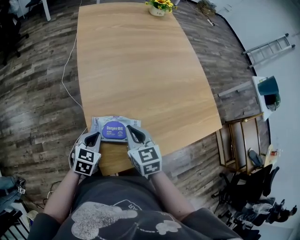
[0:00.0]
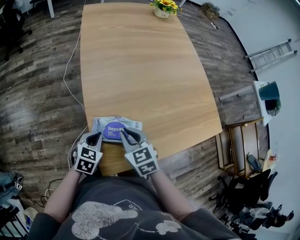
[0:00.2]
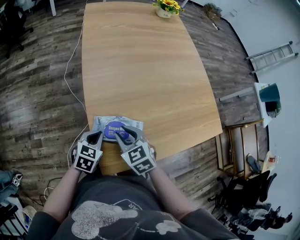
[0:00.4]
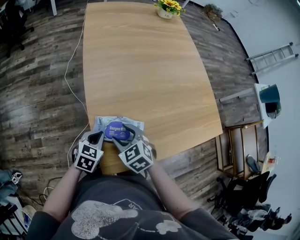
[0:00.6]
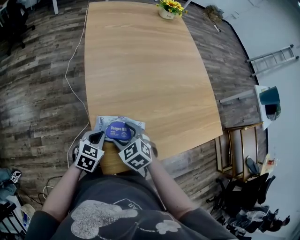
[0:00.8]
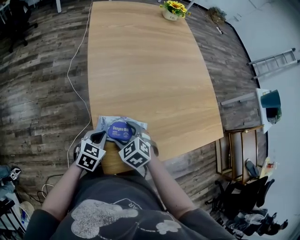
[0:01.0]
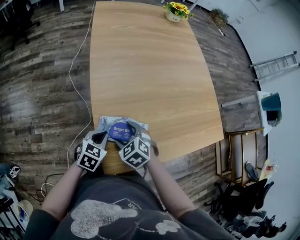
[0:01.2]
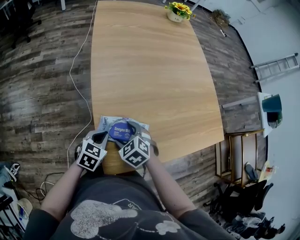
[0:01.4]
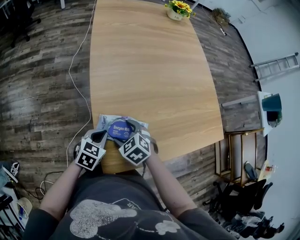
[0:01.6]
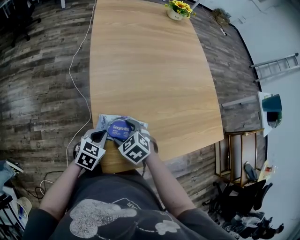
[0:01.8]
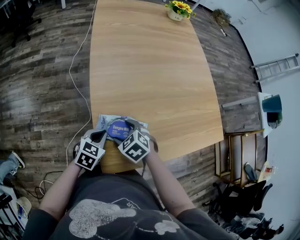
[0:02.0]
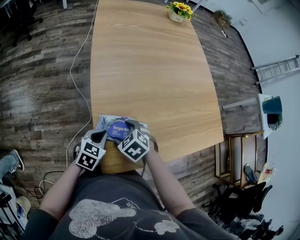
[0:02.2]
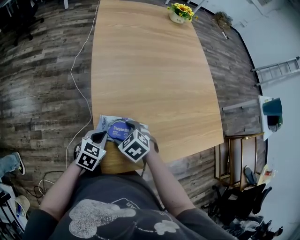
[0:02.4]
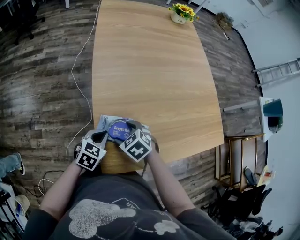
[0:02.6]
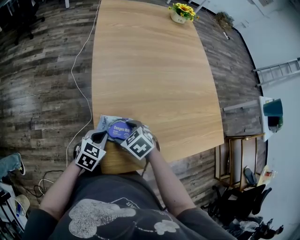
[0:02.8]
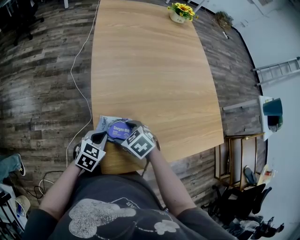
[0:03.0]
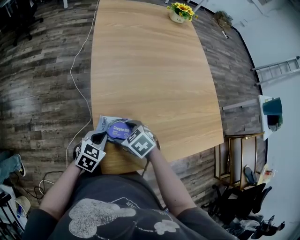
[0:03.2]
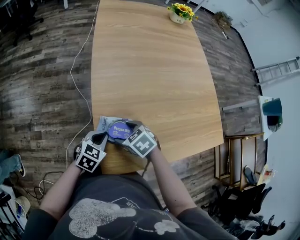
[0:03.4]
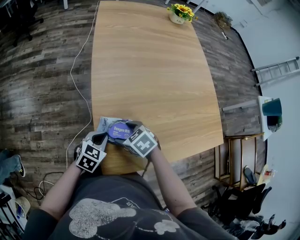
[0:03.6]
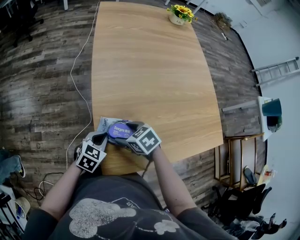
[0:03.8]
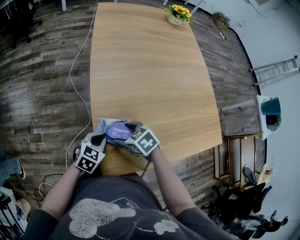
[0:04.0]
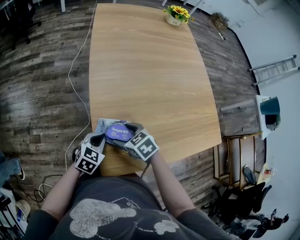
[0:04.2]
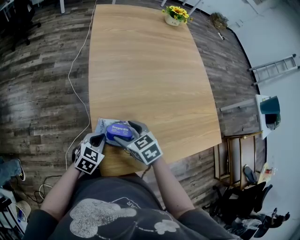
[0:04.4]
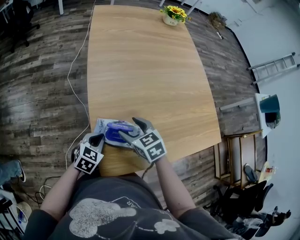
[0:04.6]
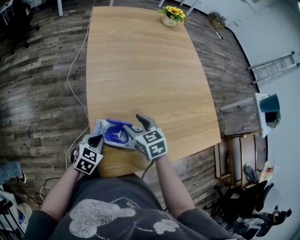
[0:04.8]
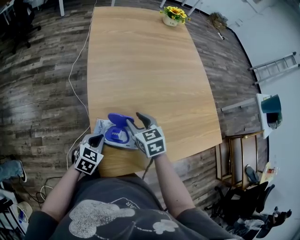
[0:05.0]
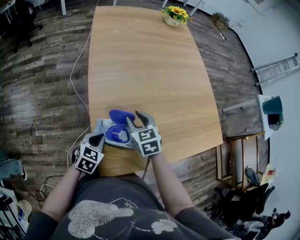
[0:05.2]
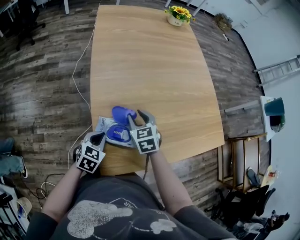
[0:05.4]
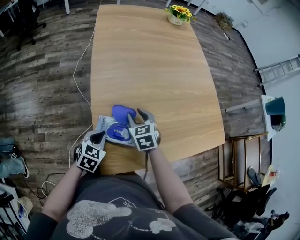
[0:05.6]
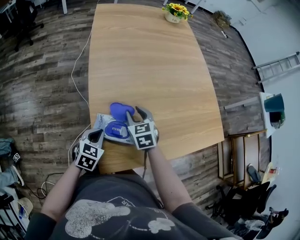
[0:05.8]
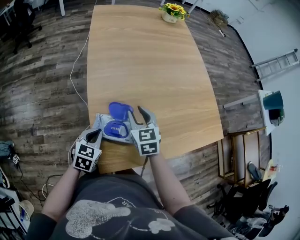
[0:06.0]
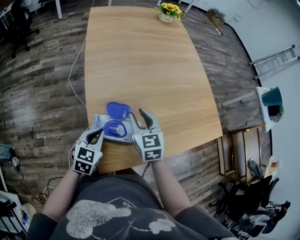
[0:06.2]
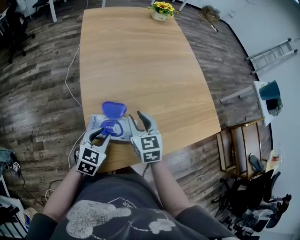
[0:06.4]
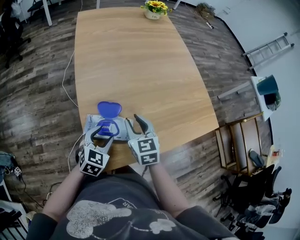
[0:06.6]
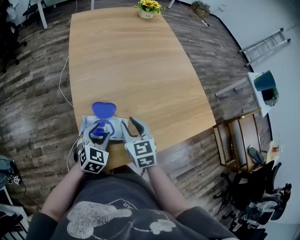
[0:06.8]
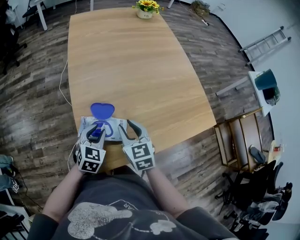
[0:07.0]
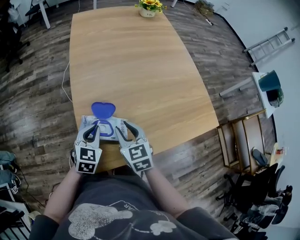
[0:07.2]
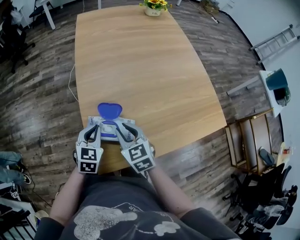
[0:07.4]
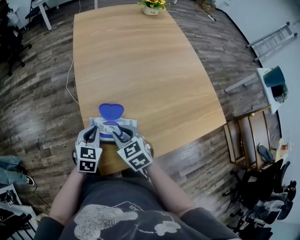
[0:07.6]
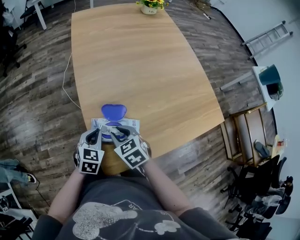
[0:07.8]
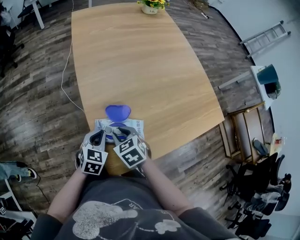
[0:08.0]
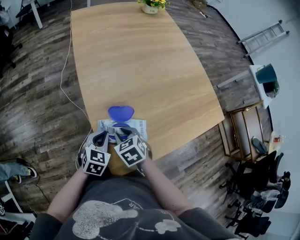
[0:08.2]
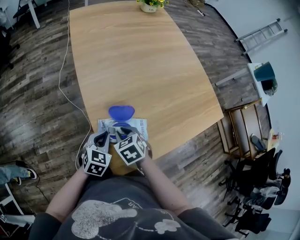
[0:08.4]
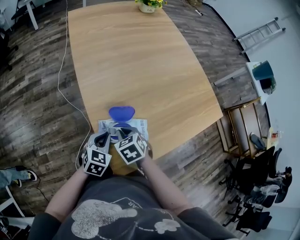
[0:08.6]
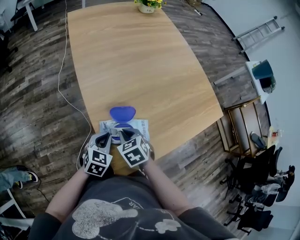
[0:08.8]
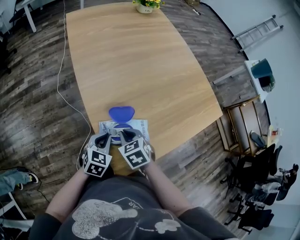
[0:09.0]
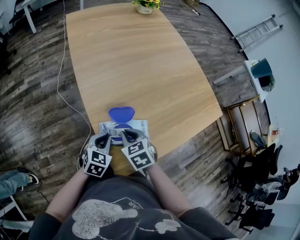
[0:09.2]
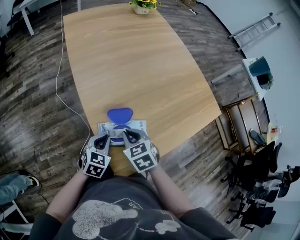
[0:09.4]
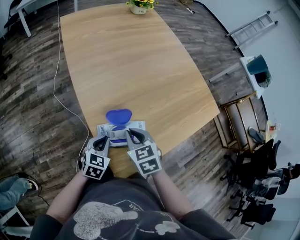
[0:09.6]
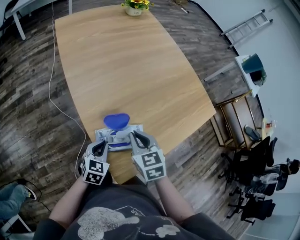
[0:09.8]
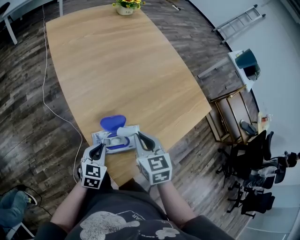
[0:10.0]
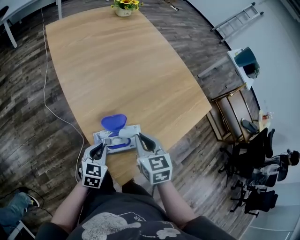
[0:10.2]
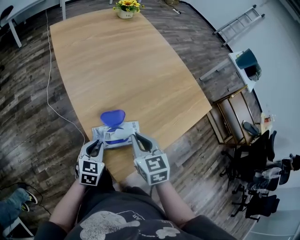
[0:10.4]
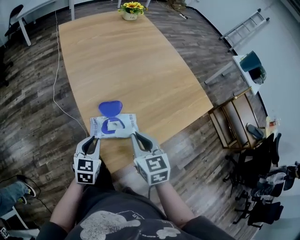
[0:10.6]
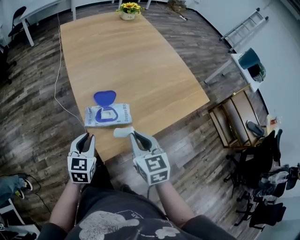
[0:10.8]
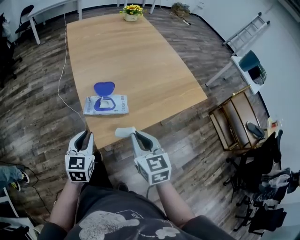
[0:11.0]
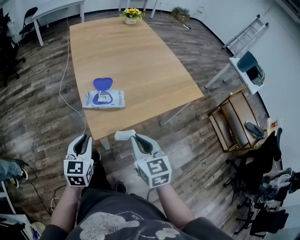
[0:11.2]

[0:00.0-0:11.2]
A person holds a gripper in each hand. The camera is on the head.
0:00.0 to 0:01.6: The right gripper goes roughly 10 cm downward and to the left, changes its angle by some 40 degrees, and opens up.
0:01.6 to 0:03.2: There are only small adjustments of the grippers.
0:03.2 to 0:04.8: The right gripper is displaced to the right, upward and forward by approximately 10 cm, and changes its angle by roughly 30 degrees.
0:04.8 to 0:06.4: The left gripper shifts some 5 cm upward, and opens up, while the right gripper changes place by roughly 5 cm, swivels some 20 degrees, and closes.
0:06.4 to 0:08.0: The right gripper moves to the left and downward, some 15 cm, and changes its angle by some 30 degrees. Meanwhile the left gripper ends up about 5 cm from where it was, and closes.
0:08.0 to 0:09.6: The right gripper moves upward, about 5 cm.
0:09.6 to 0:11.2: The right gripper is displaced backward and to the right by about 25 cm, and rotates some 20 degrees; the left gripper travels backward and upward by approximately 20 cm, and changes its angle by about 30 degrees.

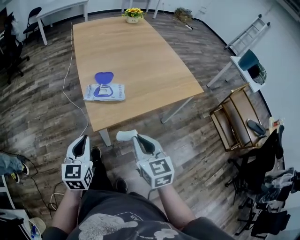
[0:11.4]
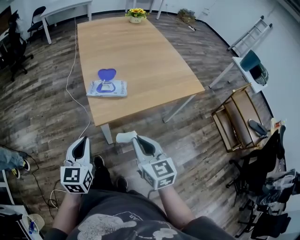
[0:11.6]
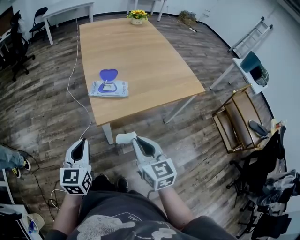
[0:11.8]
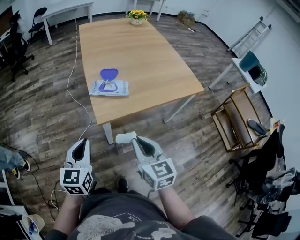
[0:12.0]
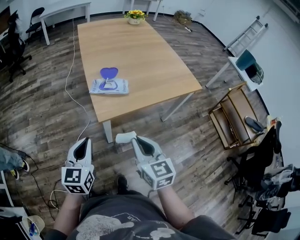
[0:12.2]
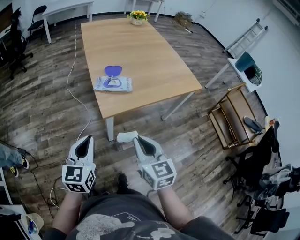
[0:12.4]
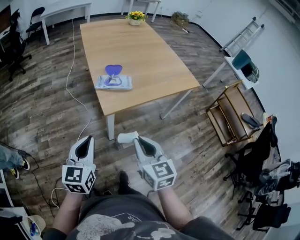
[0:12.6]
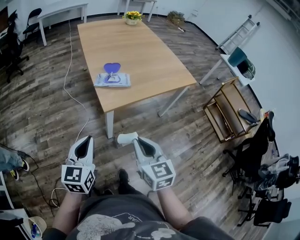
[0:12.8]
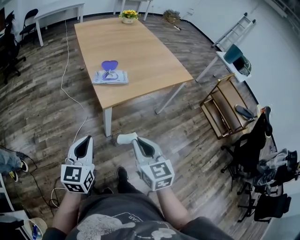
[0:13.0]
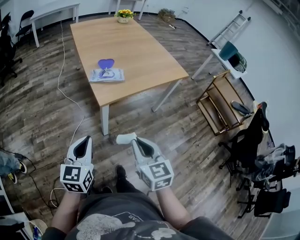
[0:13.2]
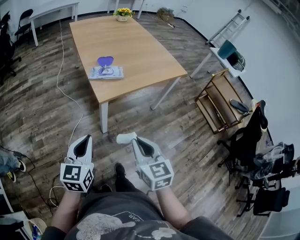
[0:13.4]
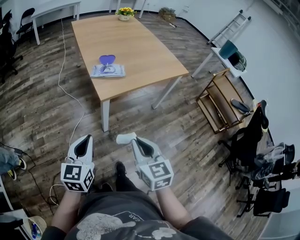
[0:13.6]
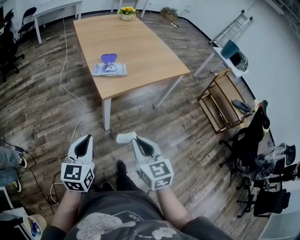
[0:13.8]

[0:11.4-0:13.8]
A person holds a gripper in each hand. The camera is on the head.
0:11.4 to 0:12.6: The right gripper moves backward and to the left, some 10 cm. The left gripper heads backward, covering roughly 10 cm.
0:12.6 to 0:13.8: The grippers both shift backward by some 10 cm.

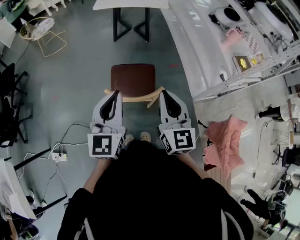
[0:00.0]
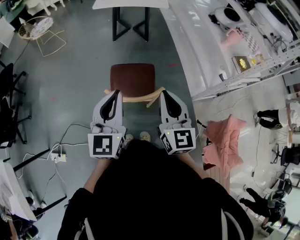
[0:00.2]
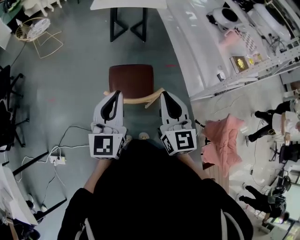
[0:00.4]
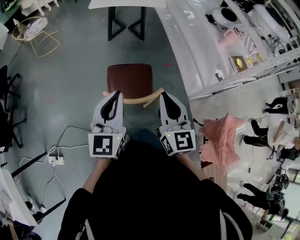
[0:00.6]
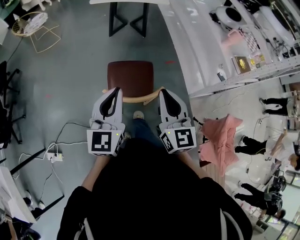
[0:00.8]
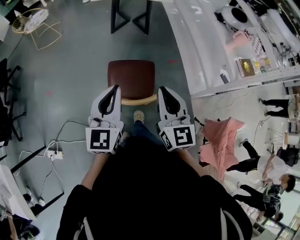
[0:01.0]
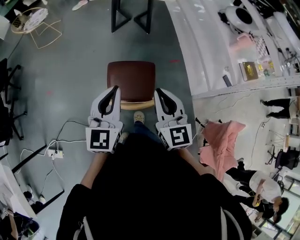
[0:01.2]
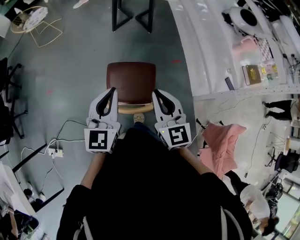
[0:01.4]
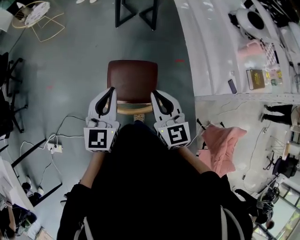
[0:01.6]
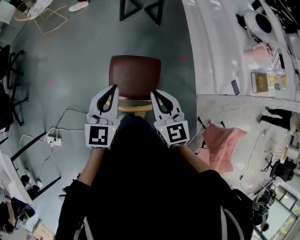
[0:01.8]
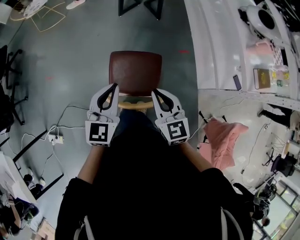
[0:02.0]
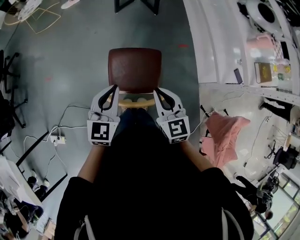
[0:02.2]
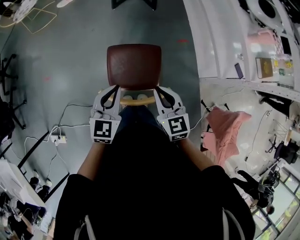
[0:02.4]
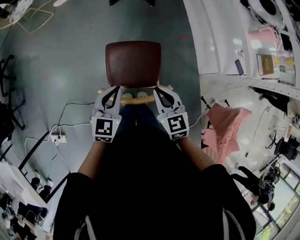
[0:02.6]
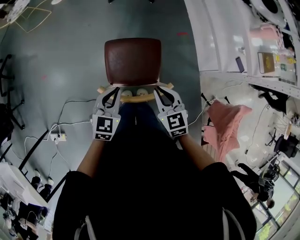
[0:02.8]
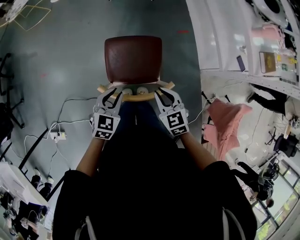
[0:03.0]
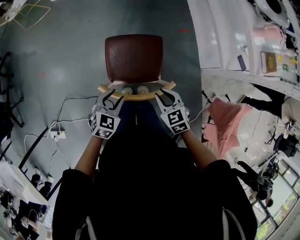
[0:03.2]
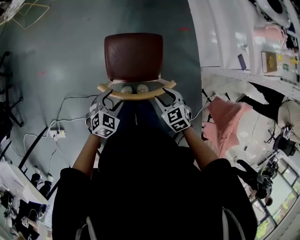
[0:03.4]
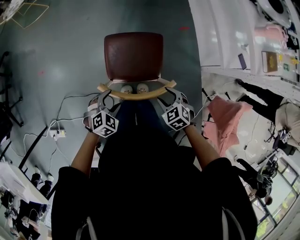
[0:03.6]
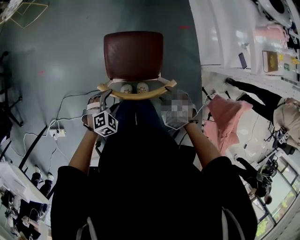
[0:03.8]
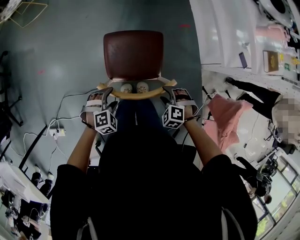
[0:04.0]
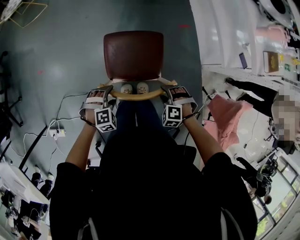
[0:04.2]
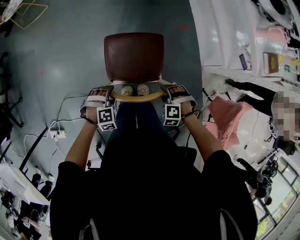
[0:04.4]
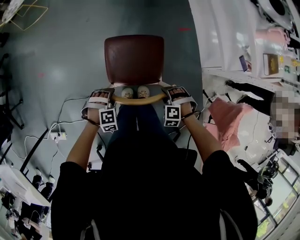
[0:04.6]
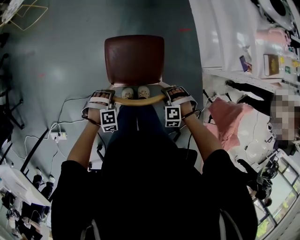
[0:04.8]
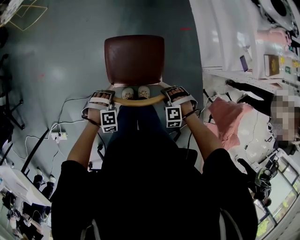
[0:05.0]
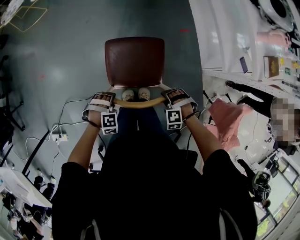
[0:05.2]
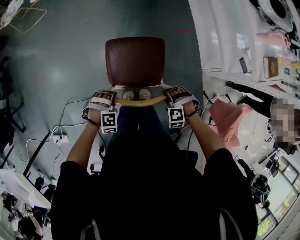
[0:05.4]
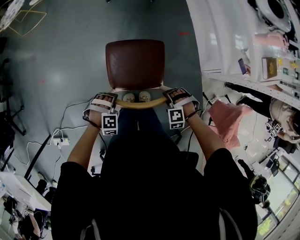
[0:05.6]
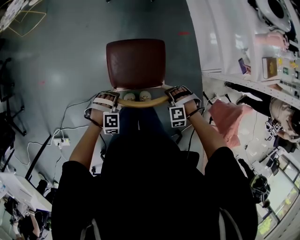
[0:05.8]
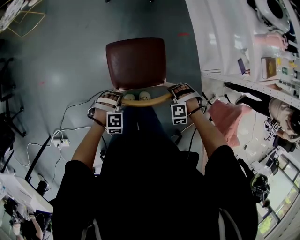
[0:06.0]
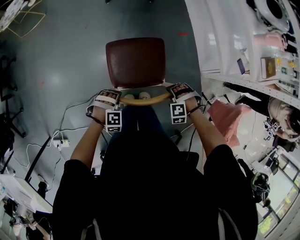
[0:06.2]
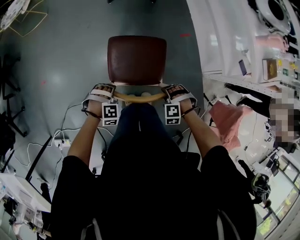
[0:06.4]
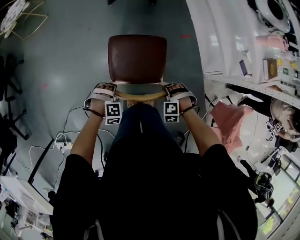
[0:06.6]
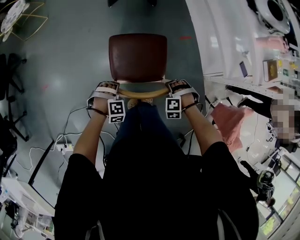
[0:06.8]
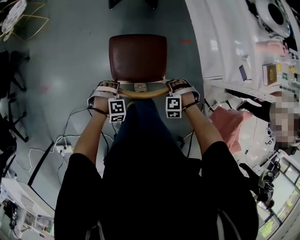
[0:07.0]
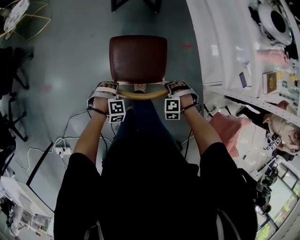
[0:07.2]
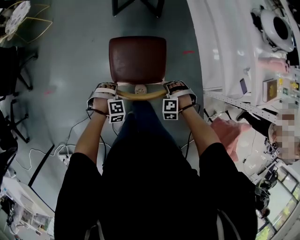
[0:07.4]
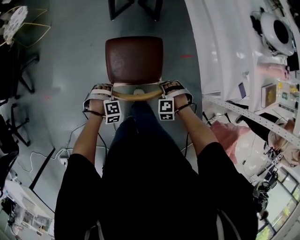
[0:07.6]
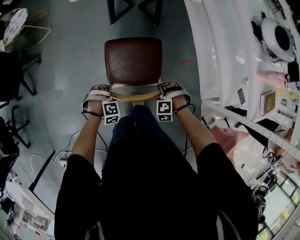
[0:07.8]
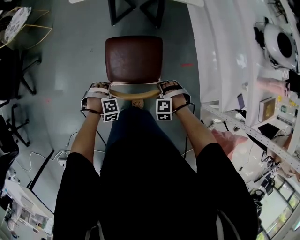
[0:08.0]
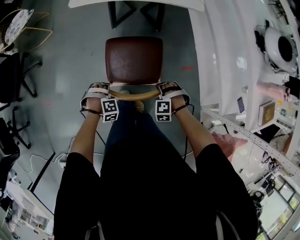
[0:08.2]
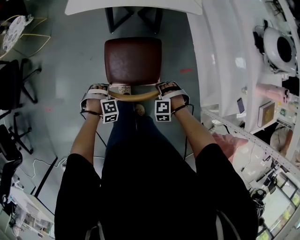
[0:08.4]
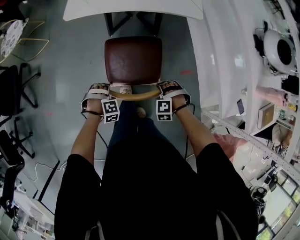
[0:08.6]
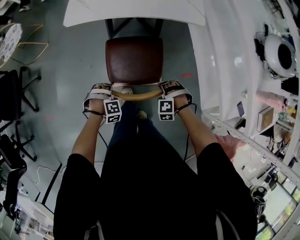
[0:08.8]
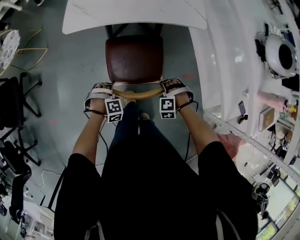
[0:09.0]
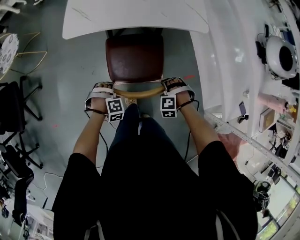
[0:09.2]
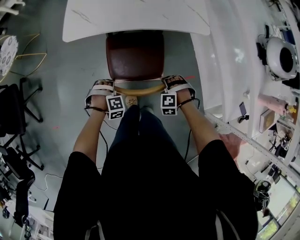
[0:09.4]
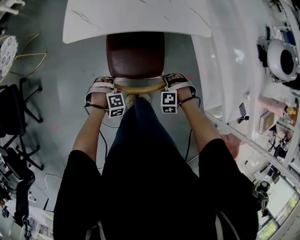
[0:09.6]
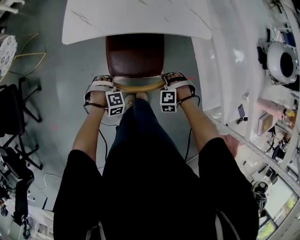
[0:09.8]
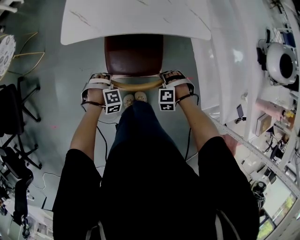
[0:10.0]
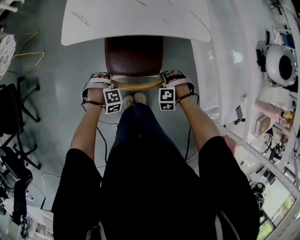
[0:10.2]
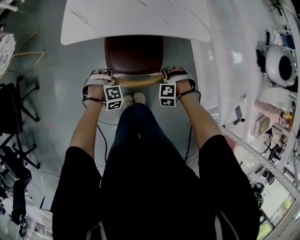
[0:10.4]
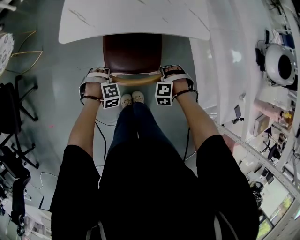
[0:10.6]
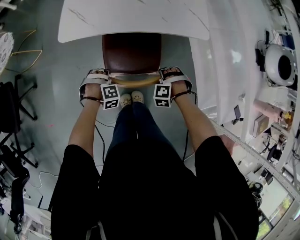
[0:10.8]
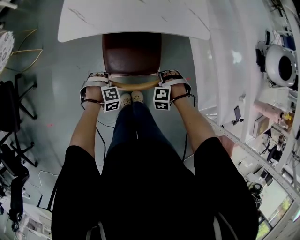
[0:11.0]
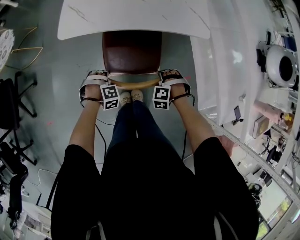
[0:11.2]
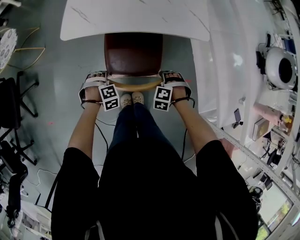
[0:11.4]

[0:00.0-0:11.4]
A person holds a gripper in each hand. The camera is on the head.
0:00.0 to 0:01.4: Both grippers move forward and downward, roughly 15 cm.
0:01.4 to 0:02.8: The grippers both shift downward by about 20 cm. The right gripper turns by approximately 30 degrees. Meanwhile the left gripper swivels approximately 30 degrees.
0:02.8 to 0:04.2: The two grippers go approximately 15 cm downward. The right gripper rolls counterclockwise, seen from behind, by roughly 60 degrees, and opens; the left gripper twists roughly 50 degrees clockwise, seen from behind, and opens up.
0:04.2 to 0:05.6: The left gripper closes its fingers.
0:05.6 to 0:07.2: The right gripper ends up some 15 cm from where it was. Meanwhile the left gripper moves some 15 cm.
0:07.2 to 0:08.6: The left gripper shifts by approximately 25 cm, while the right gripper moves some 25 cm.
0:08.6 to 0:10.0: The grippers both shift forward by about 20 cm.
0:10.0 to 0:11.4: The grippers move only a little.
